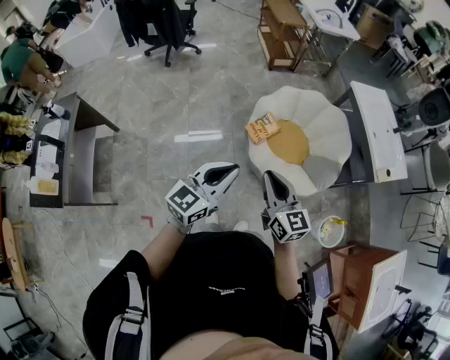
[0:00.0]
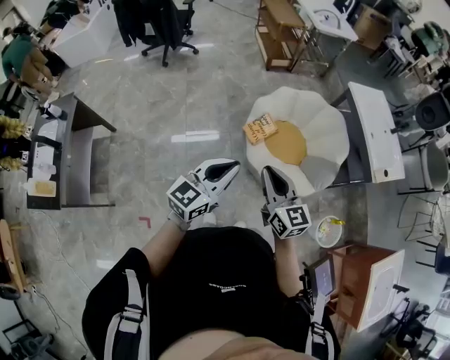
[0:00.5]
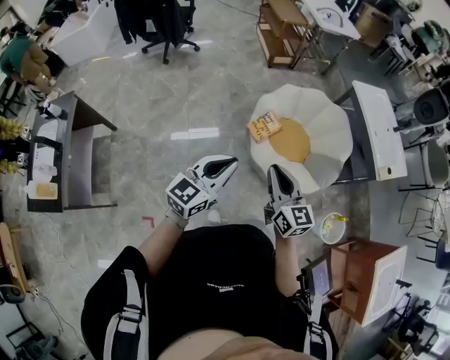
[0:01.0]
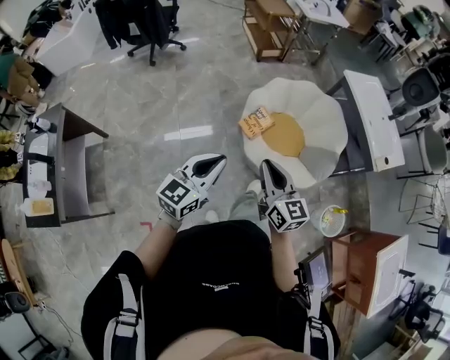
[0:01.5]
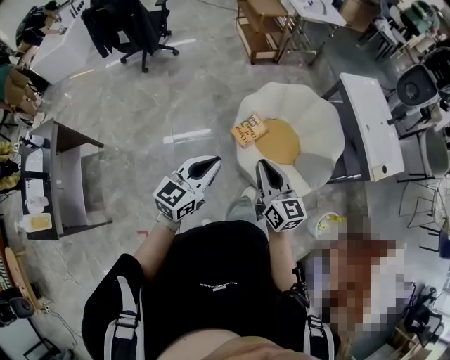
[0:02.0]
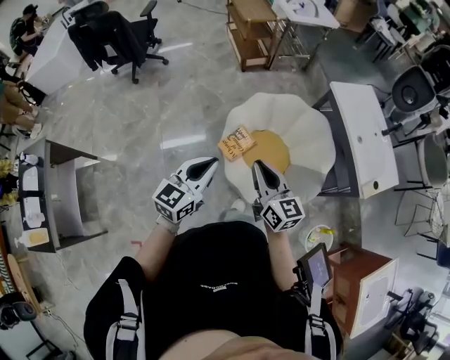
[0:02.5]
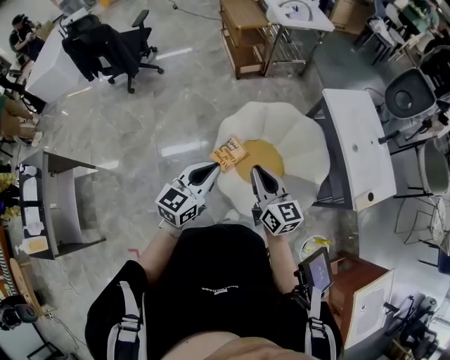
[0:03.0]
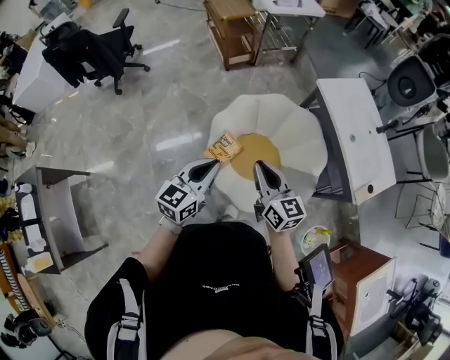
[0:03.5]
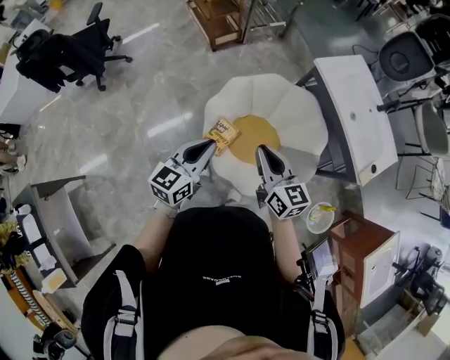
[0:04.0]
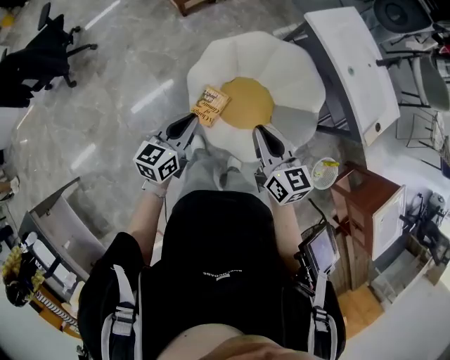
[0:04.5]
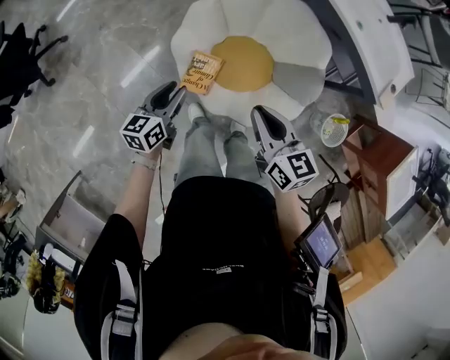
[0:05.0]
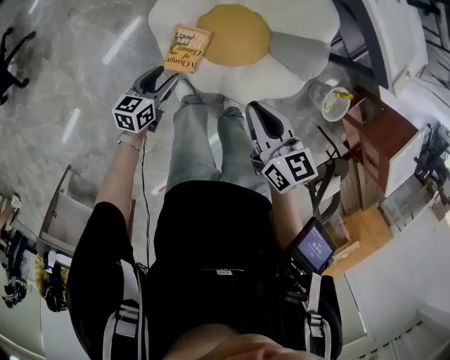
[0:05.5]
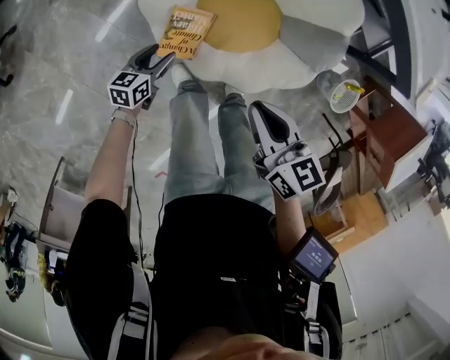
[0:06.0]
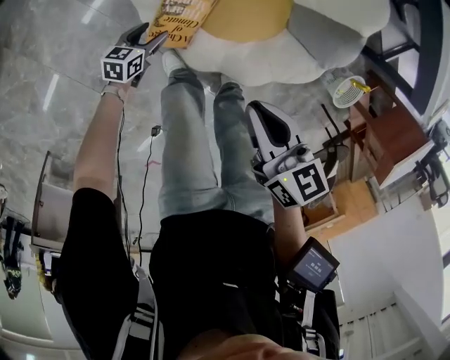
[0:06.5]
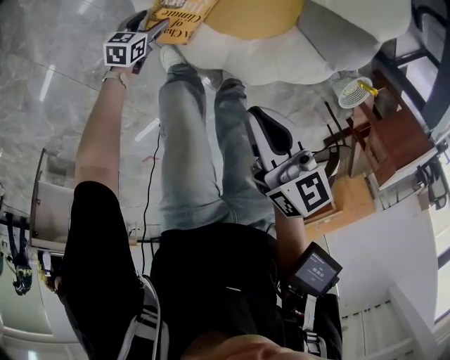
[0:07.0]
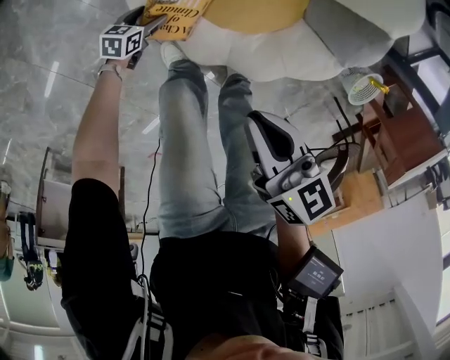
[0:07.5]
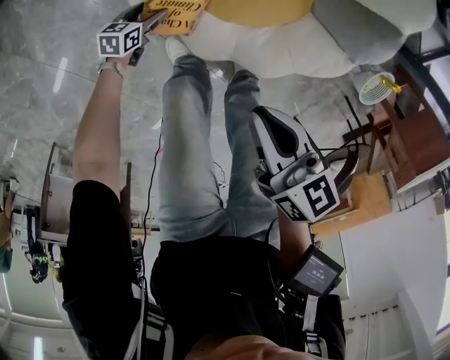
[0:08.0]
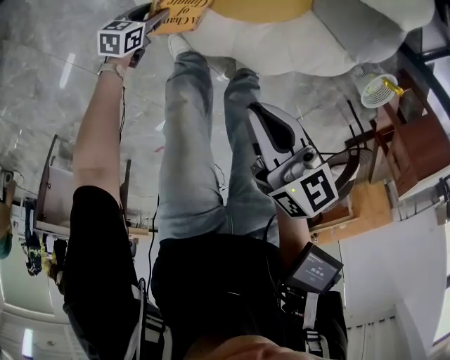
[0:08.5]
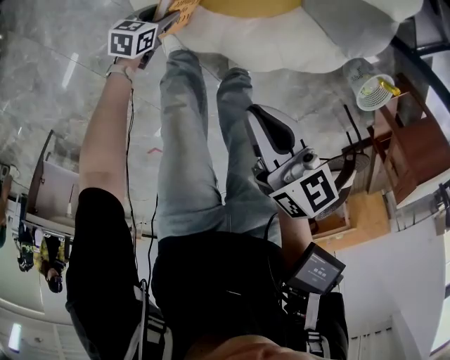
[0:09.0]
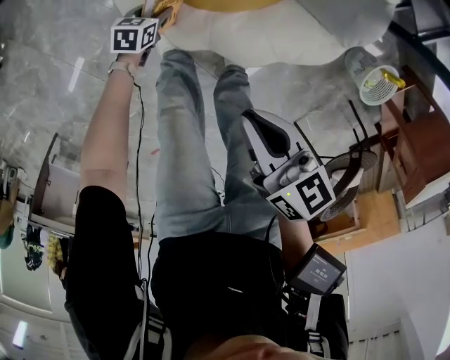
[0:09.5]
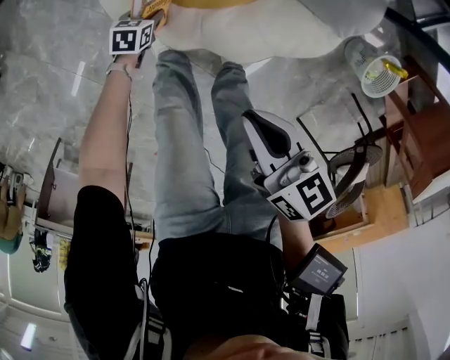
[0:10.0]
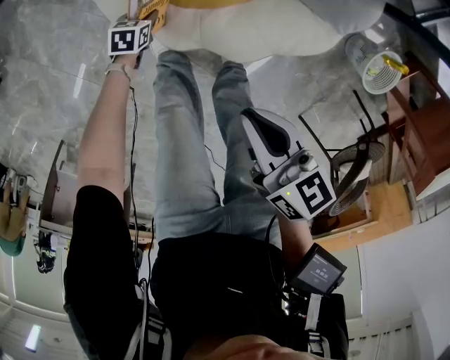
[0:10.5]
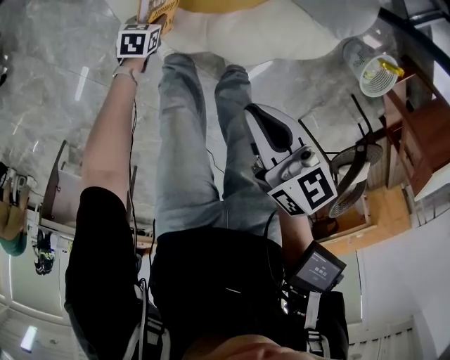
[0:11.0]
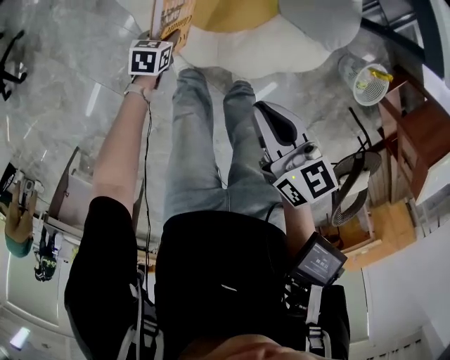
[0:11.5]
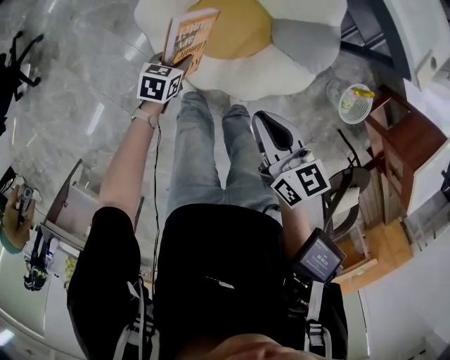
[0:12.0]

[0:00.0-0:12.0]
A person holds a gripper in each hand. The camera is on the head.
0:00.0 to 0:02.0: The two grippers go roughly 15 cm forward.
0:02.0 to 0:04.0: Both grippers move forward, about 35 cm.
0:04.0 to 0:06.0: The left gripper heads downward, covering approximately 60 cm, swivels about 40 degrees, and opens its fingers, while the right gripper moves downward, some 35 cm, and swivels approximately 30 degrees.
0:06.0 to 0:08.0: The right gripper is displaced downward by roughly 15 cm, while the left gripper moves downward, about 30 cm.
0:08.0 to 0:10.0: The left gripper goes roughly 15 cm to the right, and rotates roughly 20 degrees, while the right gripper heads to the right and backward, covering approximately 20 cm.
0:10.0 to 0:12.0: The left gripper shifts roughly 35 cm upward. The right gripper is displaced upward by roughly 20 cm.

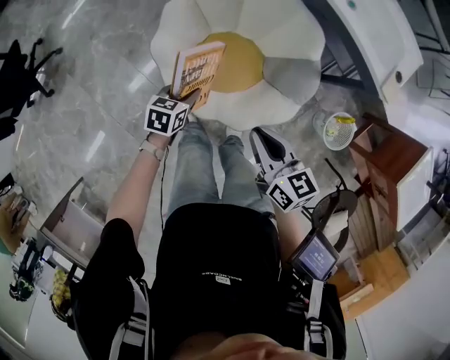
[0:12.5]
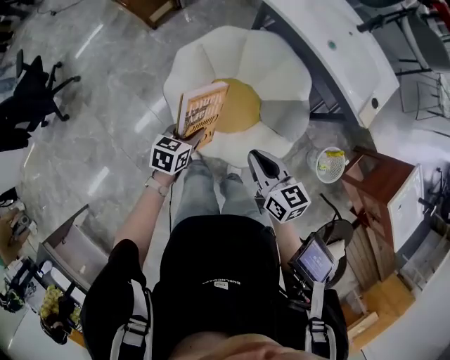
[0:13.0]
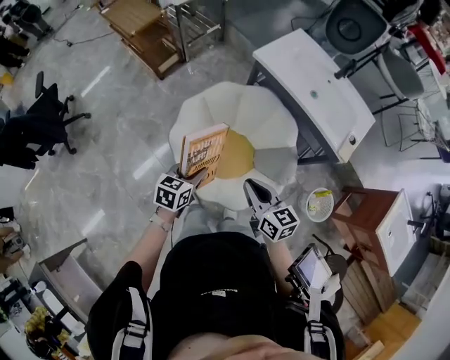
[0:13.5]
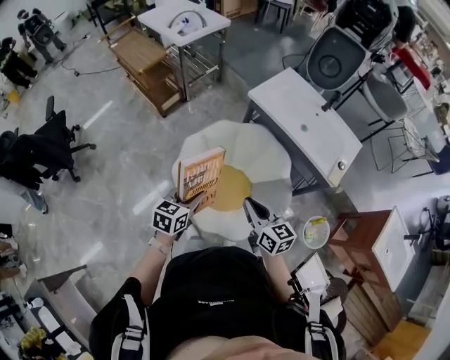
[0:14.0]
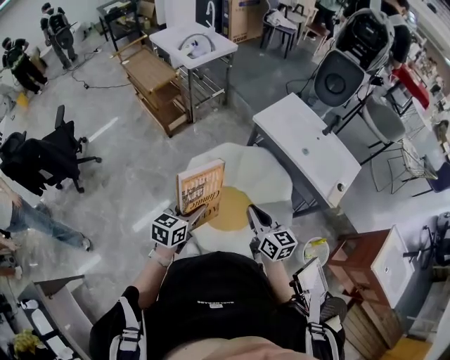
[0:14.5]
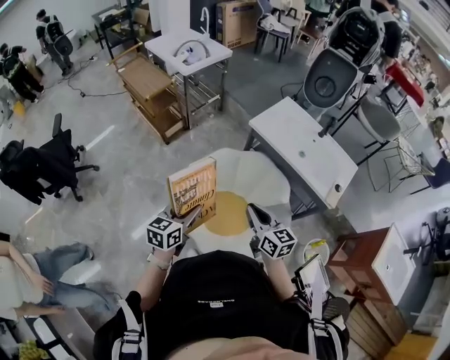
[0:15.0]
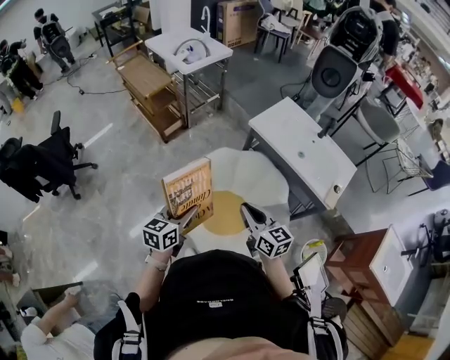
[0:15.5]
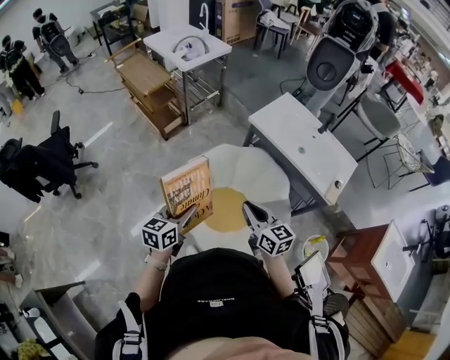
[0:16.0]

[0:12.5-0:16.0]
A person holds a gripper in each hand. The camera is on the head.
0:12.5 to 0:14.5: The right gripper heads upward, covering roughly 20 cm, while the left gripper goes roughly 35 cm upward, and rotates some 30 degrees.
0:14.5 to 0:16.0: The grippers move only a little.

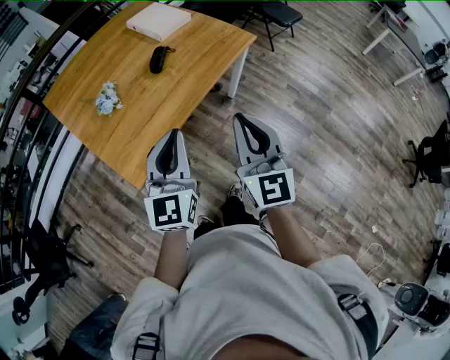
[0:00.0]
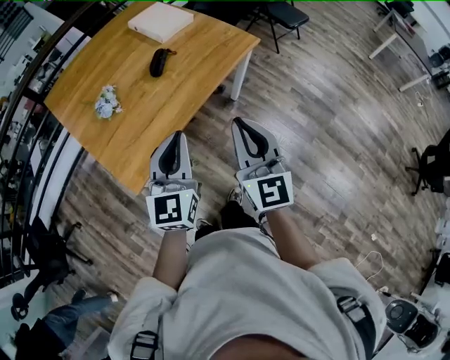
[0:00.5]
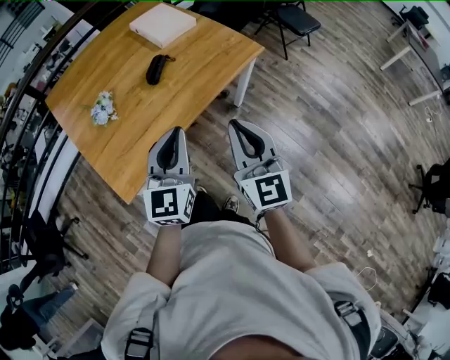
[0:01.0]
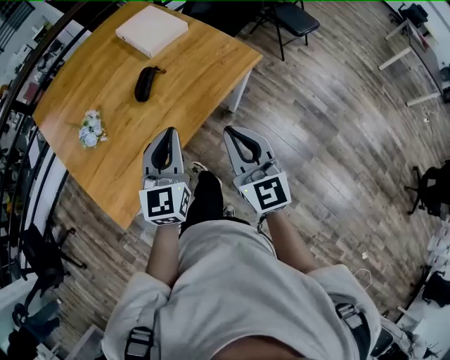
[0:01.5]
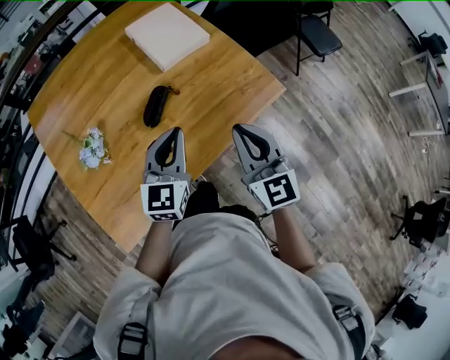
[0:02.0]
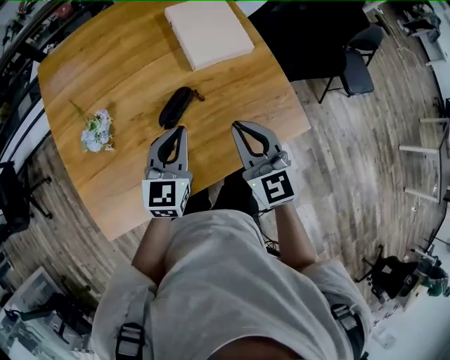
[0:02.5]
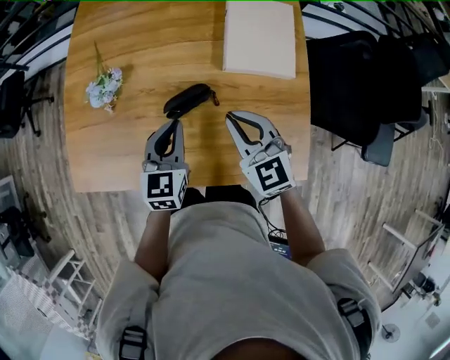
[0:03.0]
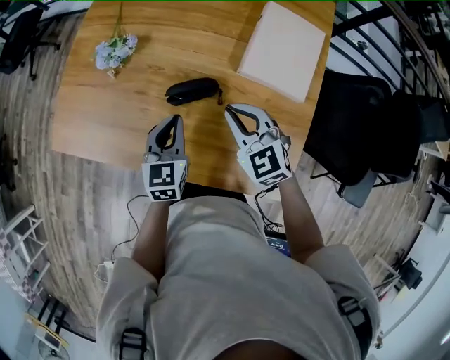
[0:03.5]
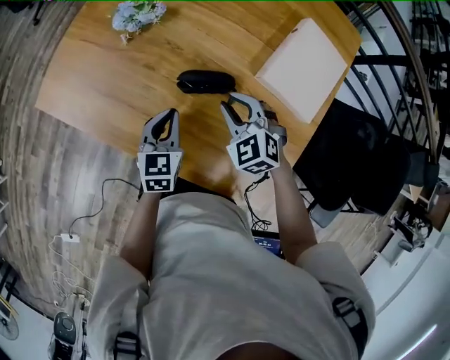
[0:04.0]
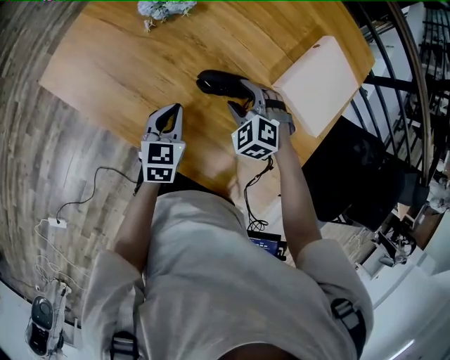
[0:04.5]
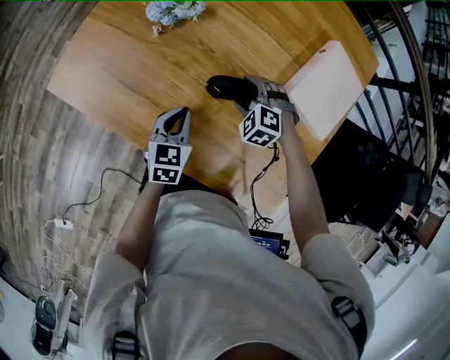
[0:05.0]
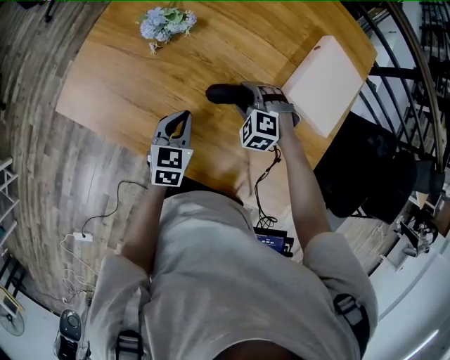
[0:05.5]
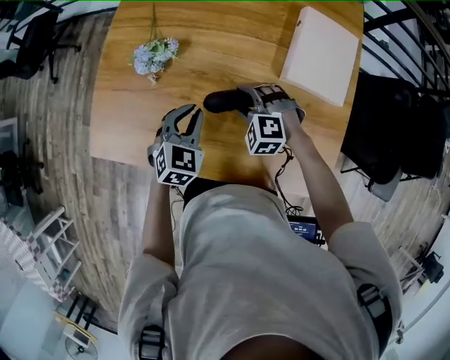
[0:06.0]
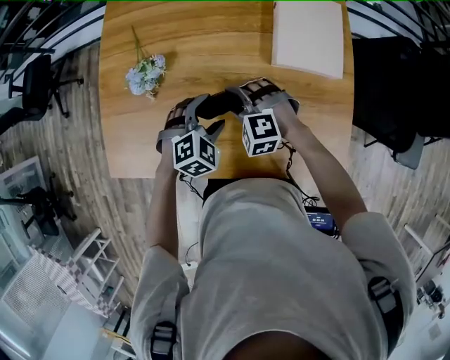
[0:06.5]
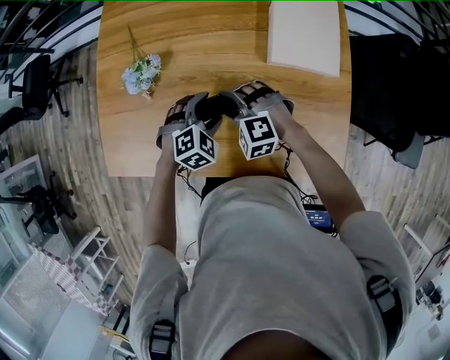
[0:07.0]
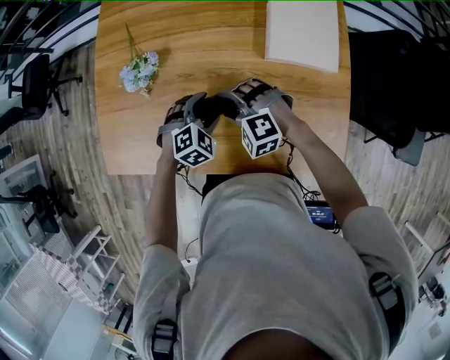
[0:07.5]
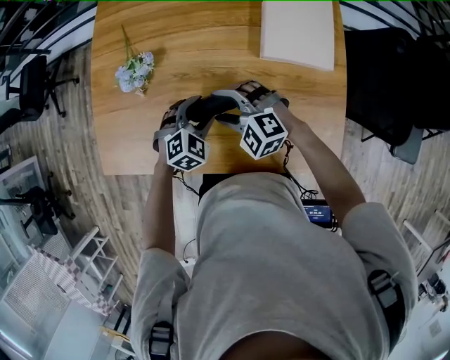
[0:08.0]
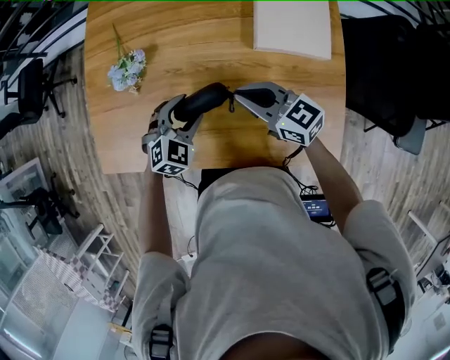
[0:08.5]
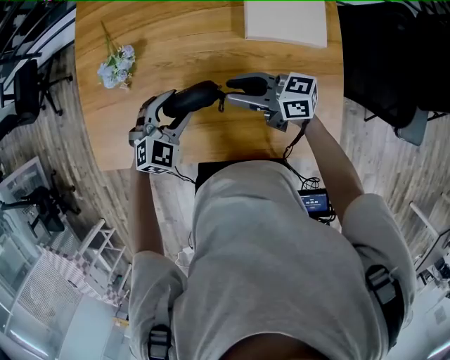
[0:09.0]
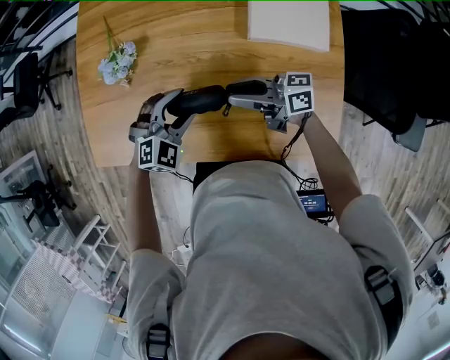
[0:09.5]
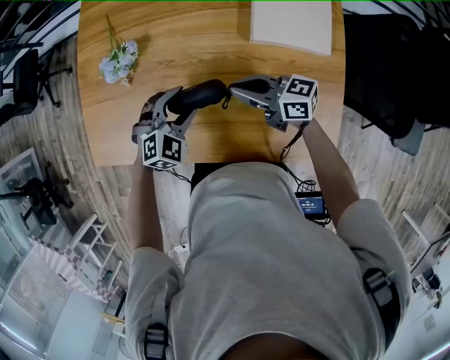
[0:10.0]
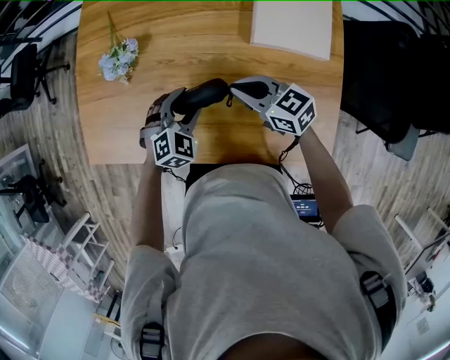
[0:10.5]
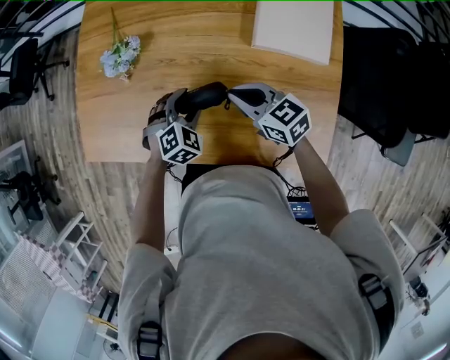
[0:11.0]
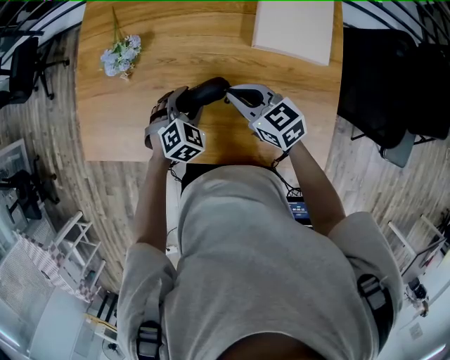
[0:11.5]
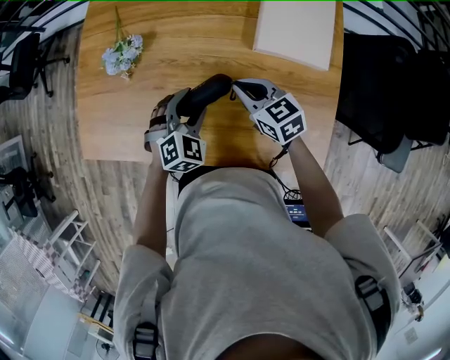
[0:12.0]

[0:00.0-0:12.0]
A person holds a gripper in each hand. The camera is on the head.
0:00.0 to 0:02.0: The grippers both shift forward by some 40 cm. The right gripper rotates some 20 degrees.
0:02.0 to 0:04.0: The left gripper travels downward by approximately 20 cm, and rotates roughly 70 degrees. Meanwhile the right gripper changes place by roughly 30 cm, and points its fingers approximately 40 degrees further downward.
0:04.0 to 0:06.0: The right gripper travels to the left by about 5 cm, and opens. The left gripper shifts some 5 cm forward, and swivels approximately 40 degrees.
0:06.0 to 0:08.0: The left gripper travels to the right and downward by some 10 cm, rotates approximately 30 degrees, and opens up; the right gripper ends up some 5 cm from where it was, and changes its angle by roughly 20 degrees.
0:08.0 to 0:10.0: The right gripper shifts some 10 cm to the right, rotates around the line of its fingers by some 70 degrees, clockwise from behind, and closes its fingers.
0:10.0 to 0:12.0: The right gripper rotates about 40 degrees.
